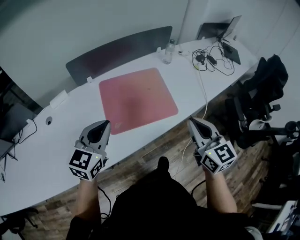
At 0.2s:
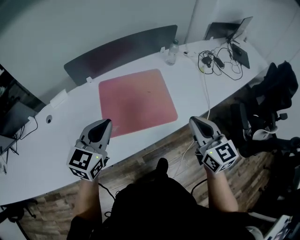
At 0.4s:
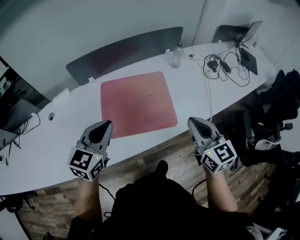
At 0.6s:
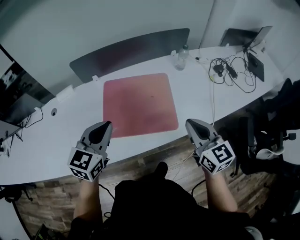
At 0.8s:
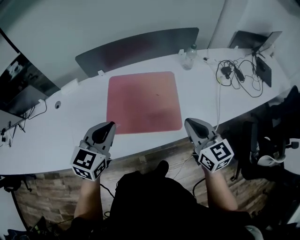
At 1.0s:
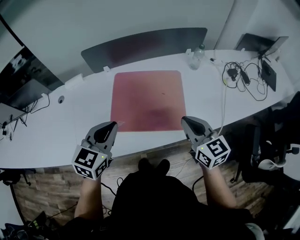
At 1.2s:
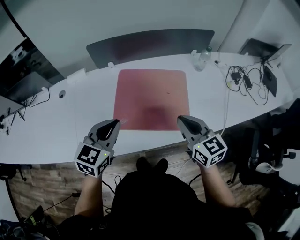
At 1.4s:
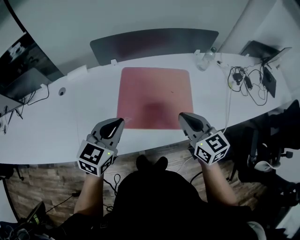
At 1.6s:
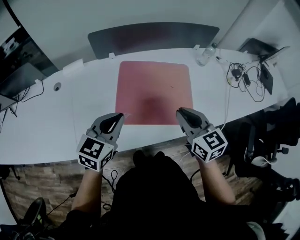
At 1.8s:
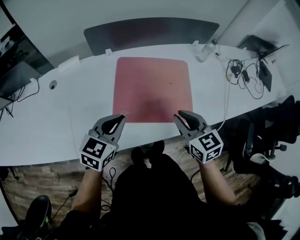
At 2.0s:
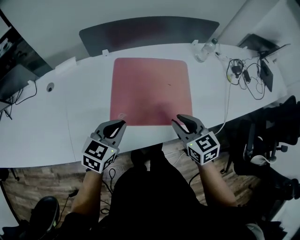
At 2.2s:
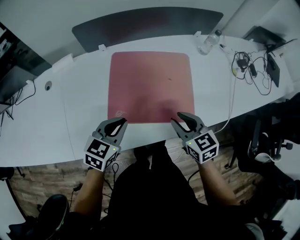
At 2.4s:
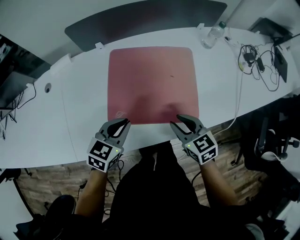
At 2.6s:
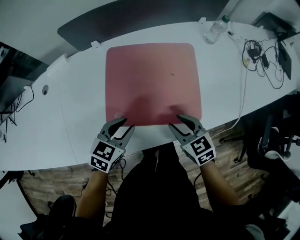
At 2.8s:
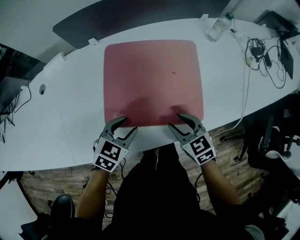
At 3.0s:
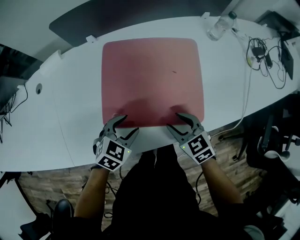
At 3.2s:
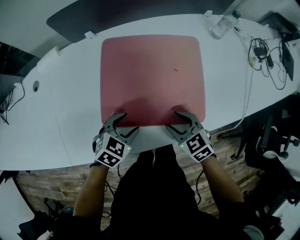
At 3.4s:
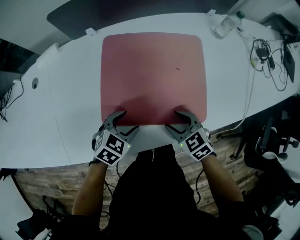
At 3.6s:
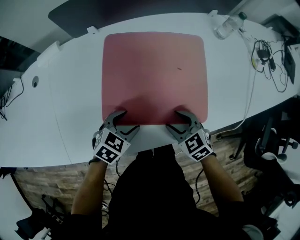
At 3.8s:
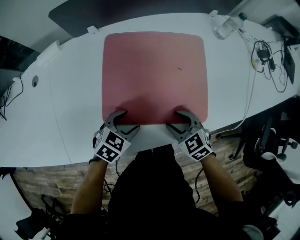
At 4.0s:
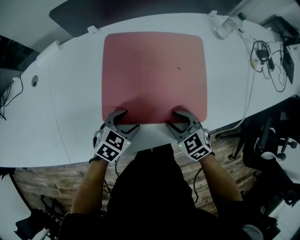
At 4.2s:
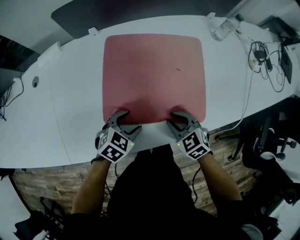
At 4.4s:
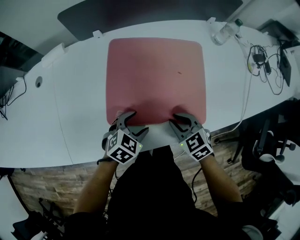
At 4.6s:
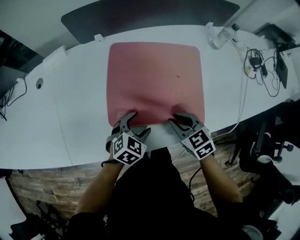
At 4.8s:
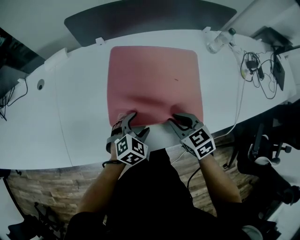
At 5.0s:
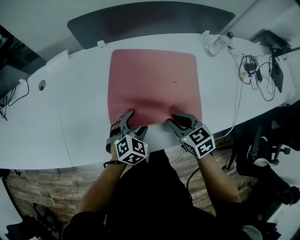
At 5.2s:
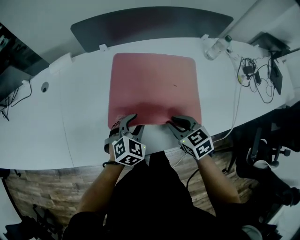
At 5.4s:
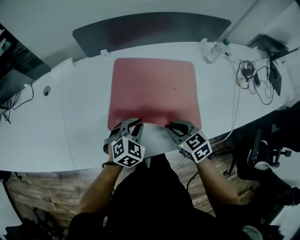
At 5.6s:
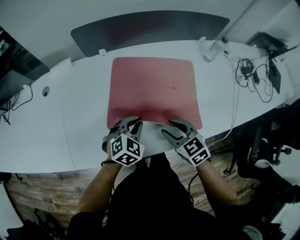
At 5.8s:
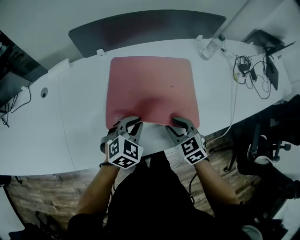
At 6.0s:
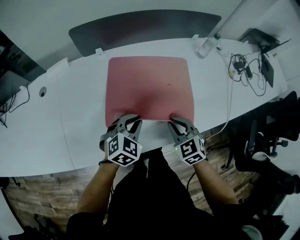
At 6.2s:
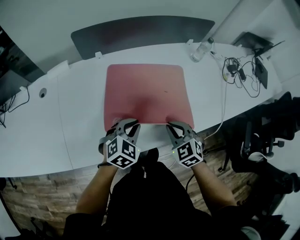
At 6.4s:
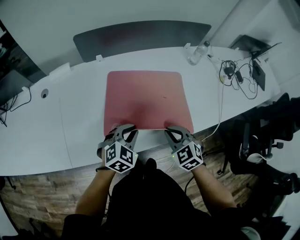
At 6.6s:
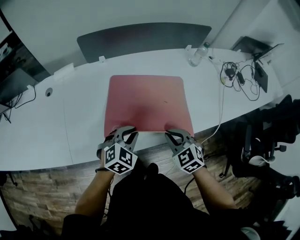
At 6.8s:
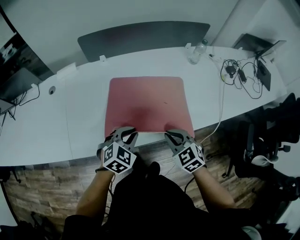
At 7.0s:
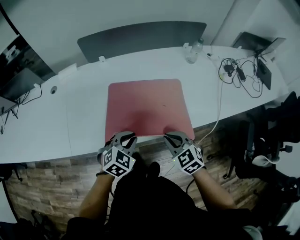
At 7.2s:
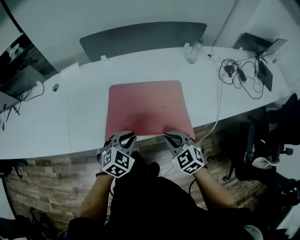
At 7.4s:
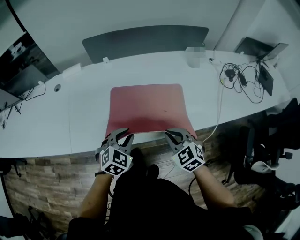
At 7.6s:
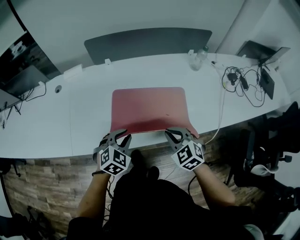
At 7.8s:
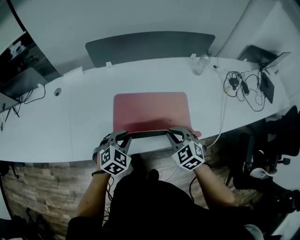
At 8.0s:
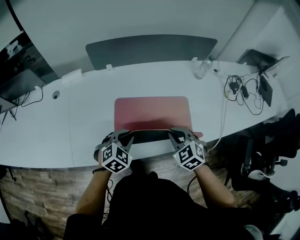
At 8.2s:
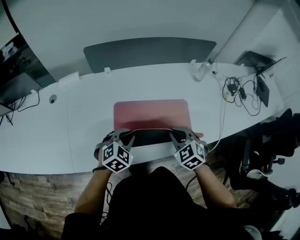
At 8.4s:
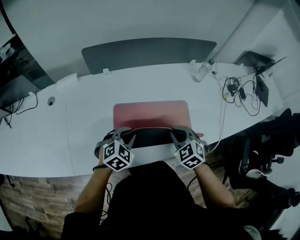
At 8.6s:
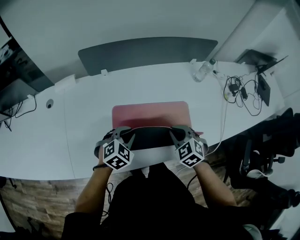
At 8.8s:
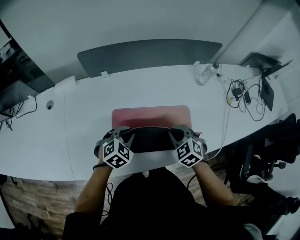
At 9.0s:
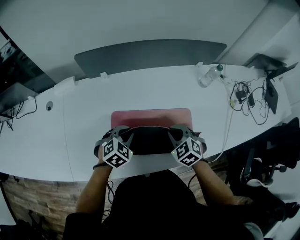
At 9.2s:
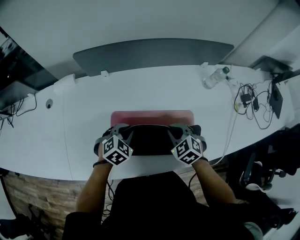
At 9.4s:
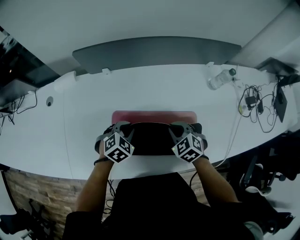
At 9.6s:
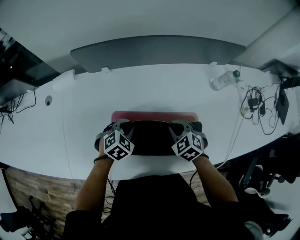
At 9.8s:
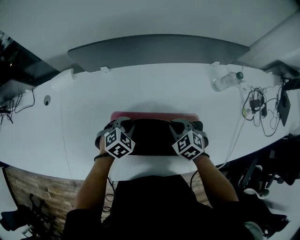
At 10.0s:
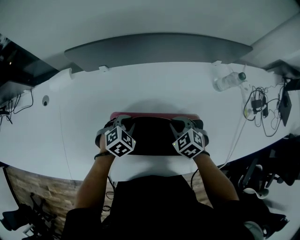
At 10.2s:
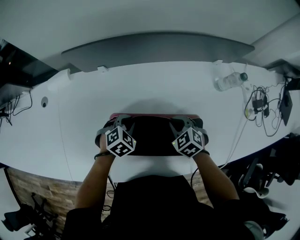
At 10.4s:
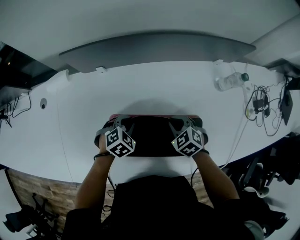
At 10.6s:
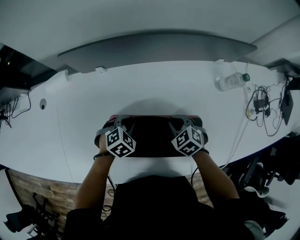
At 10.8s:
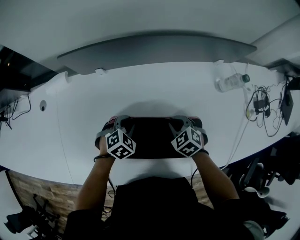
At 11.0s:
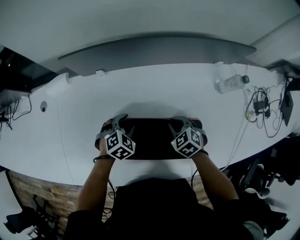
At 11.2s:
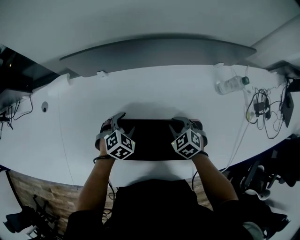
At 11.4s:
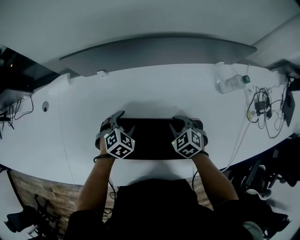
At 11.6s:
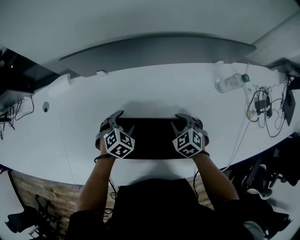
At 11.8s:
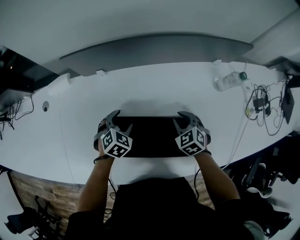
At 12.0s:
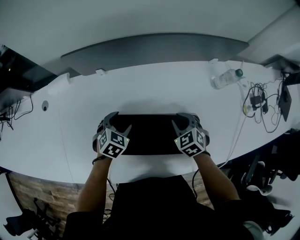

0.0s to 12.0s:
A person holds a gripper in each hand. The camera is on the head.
0.0s to 1.6s: The right gripper moves forward and downward, approximately 15 cm, and swivels some 30 degrees, while the left gripper heads downward and forward, covering some 10 cm, and goes to the right and returns, about 10 cm each way.
1.6s to 3.0s: The grippers both shift downward by some 20 cm. The left gripper turns by roughly 30 degrees, and opens. The right gripper turns by roughly 20 degrees, and opens.
3.0s to 4.4s: The right gripper closes.
4.4s to 6.0s: The two grippers go approximately 10 cm upward. The left gripper closes.
6.0s to 7.6s: The right gripper moves backward and upward, roughly 10 cm. The left gripper travels backward by some 10 cm.
7.6s to 9.0s: The grippers both shift forward by roughly 20 cm.
9.0s to 10.4s: The grippers both shift forward and downward by roughly 15 cm.
10.4s to 12.0s: The left gripper opens up.

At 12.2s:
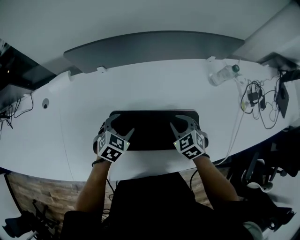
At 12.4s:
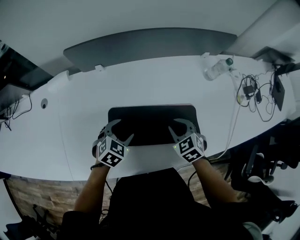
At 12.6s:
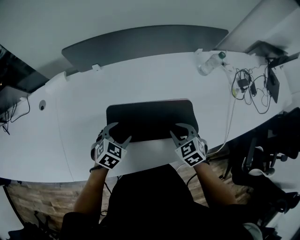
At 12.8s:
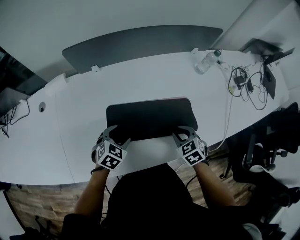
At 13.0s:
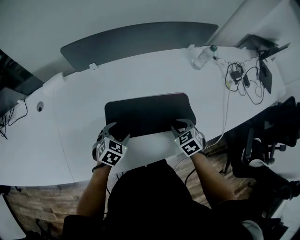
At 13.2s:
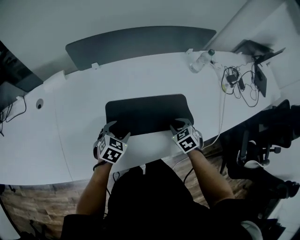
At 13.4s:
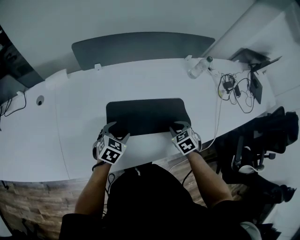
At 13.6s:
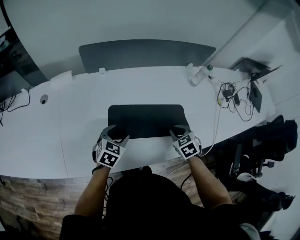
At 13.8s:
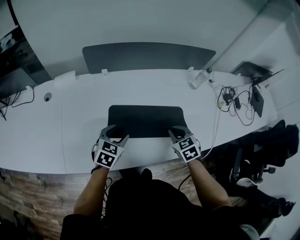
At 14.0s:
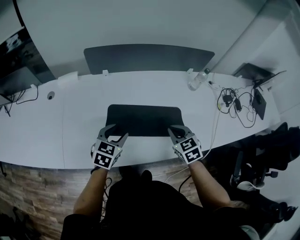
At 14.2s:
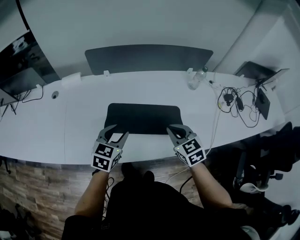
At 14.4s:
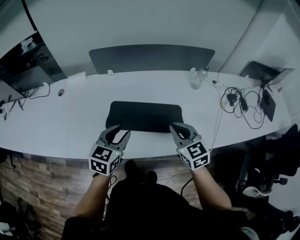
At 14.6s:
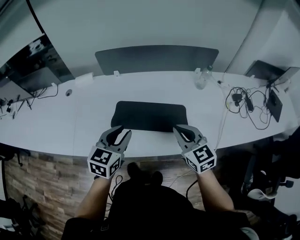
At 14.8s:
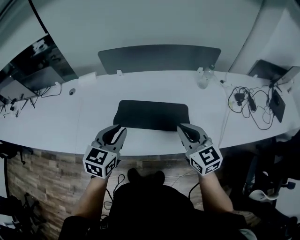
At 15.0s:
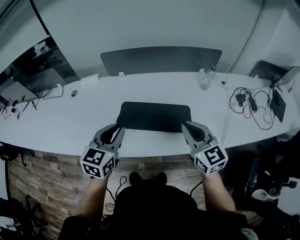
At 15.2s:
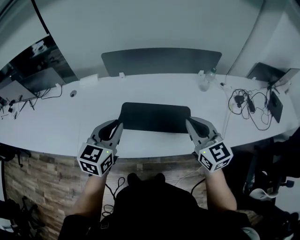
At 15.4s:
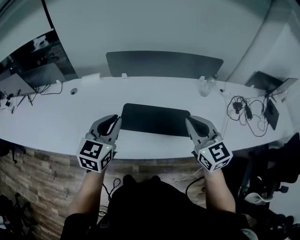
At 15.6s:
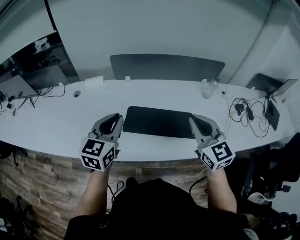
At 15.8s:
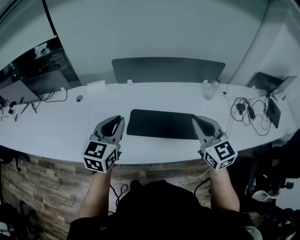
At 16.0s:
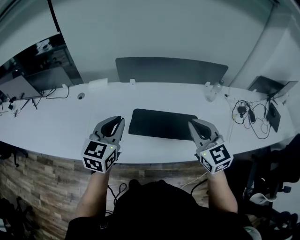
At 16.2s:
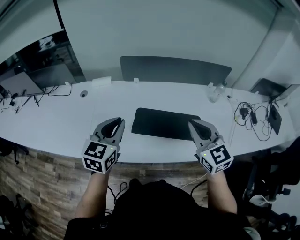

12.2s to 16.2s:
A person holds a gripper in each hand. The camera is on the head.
12.2s to 13.6s: The two grippers go approximately 10 cm backward.
13.6s to 14.8s: The two grippers go some 25 cm upward and backward. The right gripper tilts its fingers some 40 degrees upward. Meanwhile the left gripper changes its angle by about 20 degrees, and closes its fingers.
14.8s to 16.2s: The two grippers go about 15 cm to the left and upward.

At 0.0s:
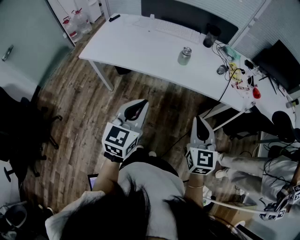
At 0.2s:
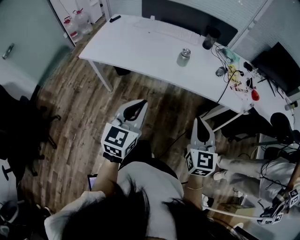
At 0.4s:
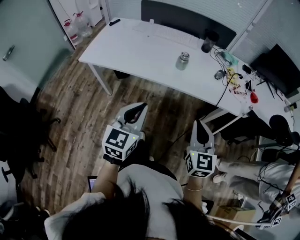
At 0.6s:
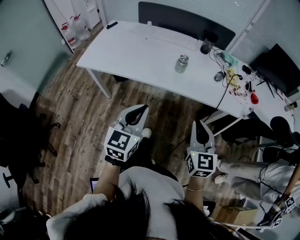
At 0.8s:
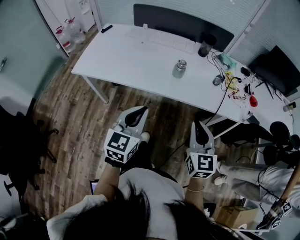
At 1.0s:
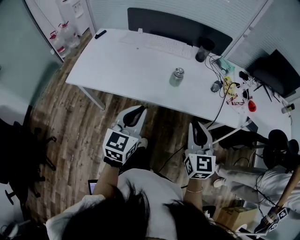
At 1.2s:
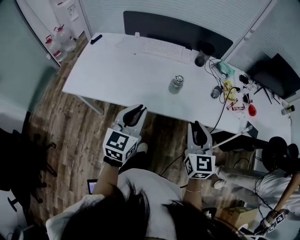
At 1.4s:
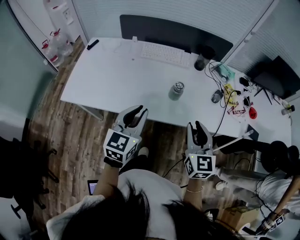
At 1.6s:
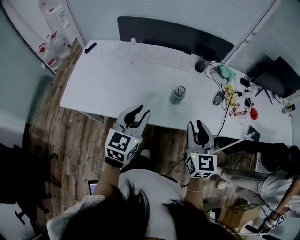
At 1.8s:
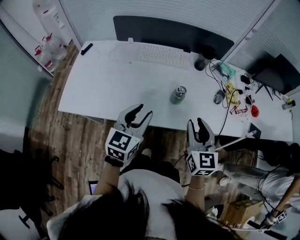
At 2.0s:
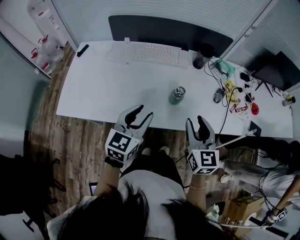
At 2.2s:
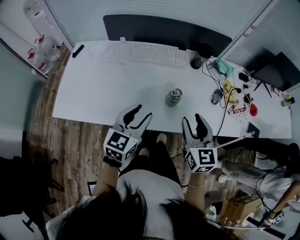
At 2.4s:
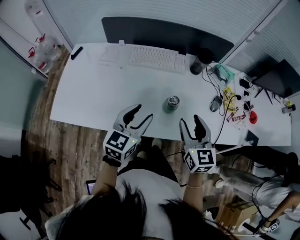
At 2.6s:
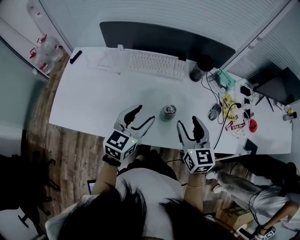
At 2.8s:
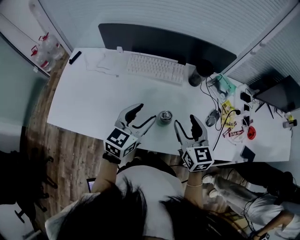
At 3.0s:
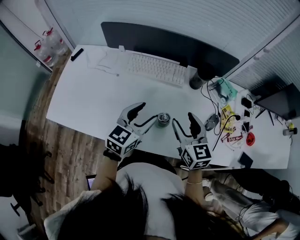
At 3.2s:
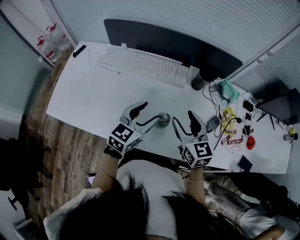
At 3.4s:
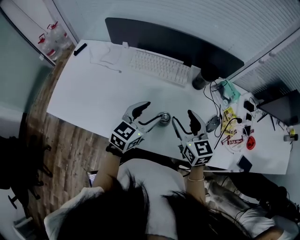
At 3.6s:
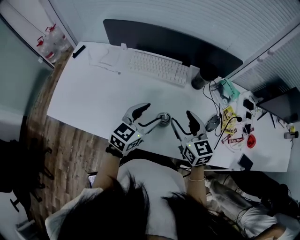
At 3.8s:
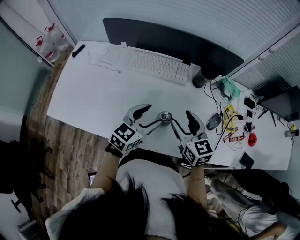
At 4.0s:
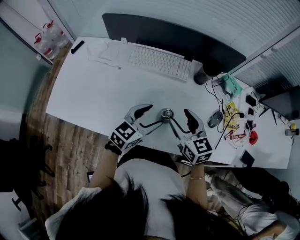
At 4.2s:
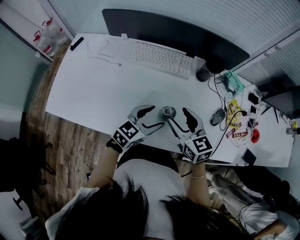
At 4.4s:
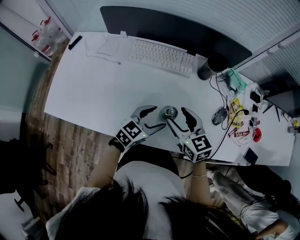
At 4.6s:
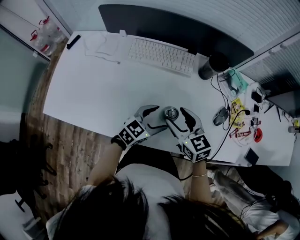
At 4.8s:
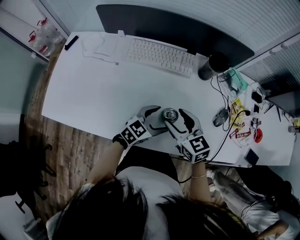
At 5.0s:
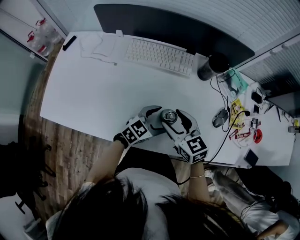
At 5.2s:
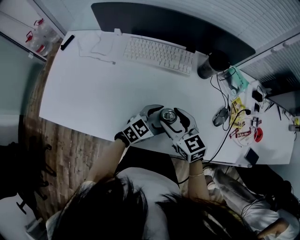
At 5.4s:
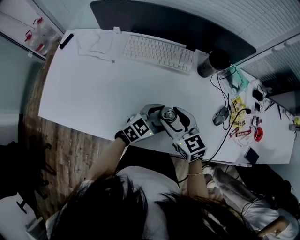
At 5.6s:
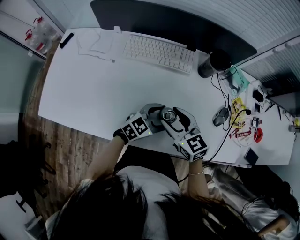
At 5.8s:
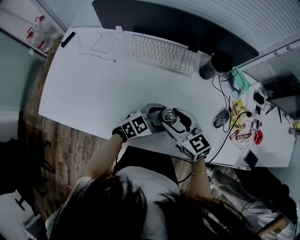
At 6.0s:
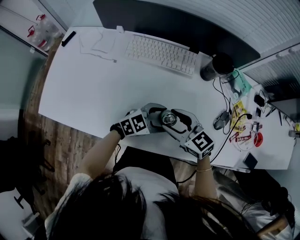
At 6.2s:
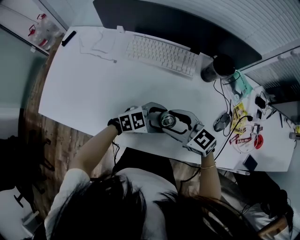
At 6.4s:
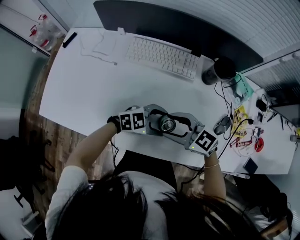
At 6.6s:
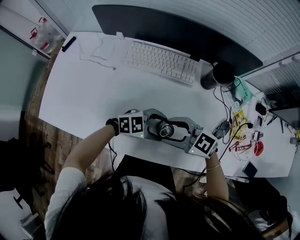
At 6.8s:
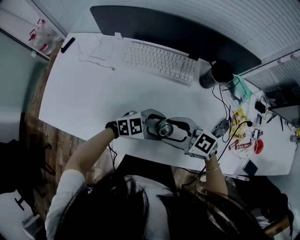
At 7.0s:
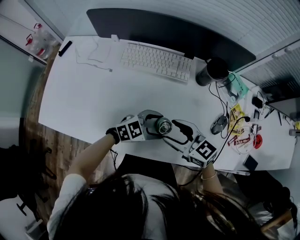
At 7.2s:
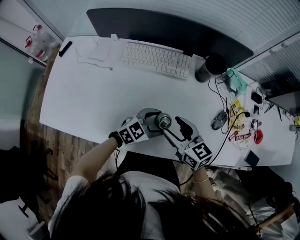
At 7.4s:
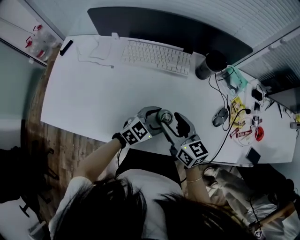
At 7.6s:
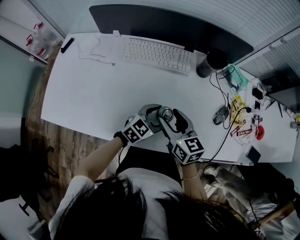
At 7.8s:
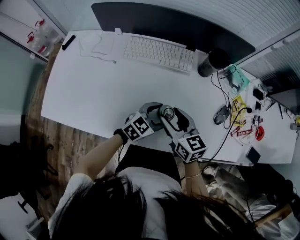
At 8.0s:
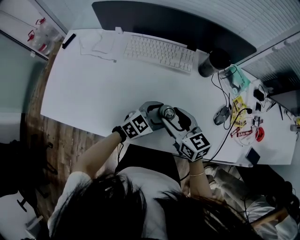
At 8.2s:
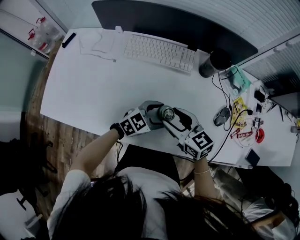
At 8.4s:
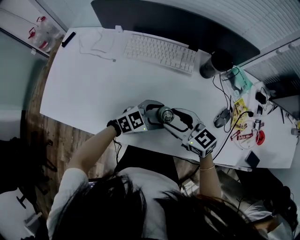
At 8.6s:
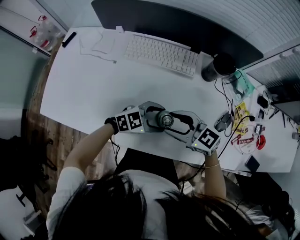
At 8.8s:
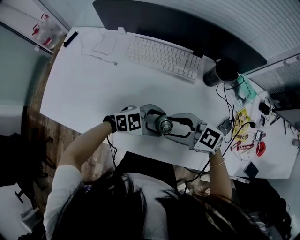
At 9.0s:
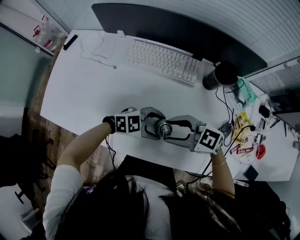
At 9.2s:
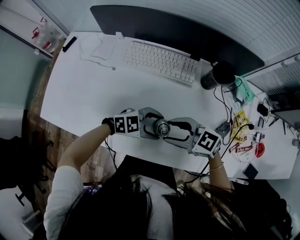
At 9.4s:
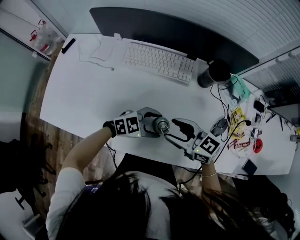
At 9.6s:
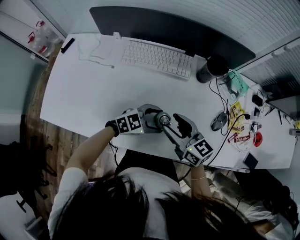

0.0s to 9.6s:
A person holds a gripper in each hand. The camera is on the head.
0.0s to 1.6s: The two grippers go roughly 25 cm forward.
1.6s to 3.2s: The right gripper shifts about 20 cm forward, turns by about 20 degrees, and opens up. Meanwhile the left gripper shifts roughly 20 cm forward and to the right, and opens up.
3.2s to 4.8s: The right gripper shifts about 10 cm downward and to the left. Meanwhile the left gripper goes approximately 15 cm downward, and turns by roughly 30 degrees.
4.8s to 6.4s: The left gripper changes its angle by roughly 30 degrees, while the right gripper swivels about 40 degrees.
6.4s to 8.0s: The left gripper swivels approximately 20 degrees. Meanwhile the right gripper changes its angle by roughly 40 degrees.
